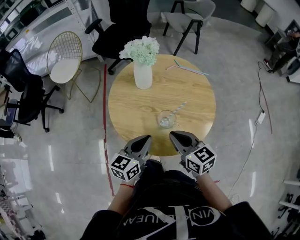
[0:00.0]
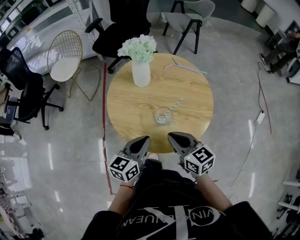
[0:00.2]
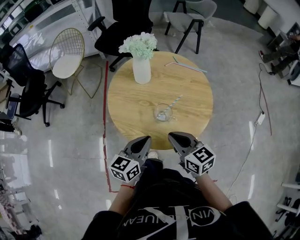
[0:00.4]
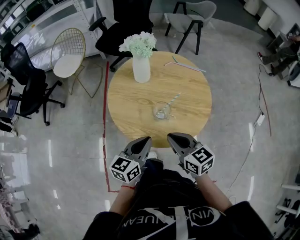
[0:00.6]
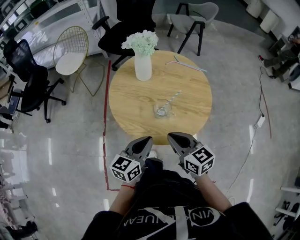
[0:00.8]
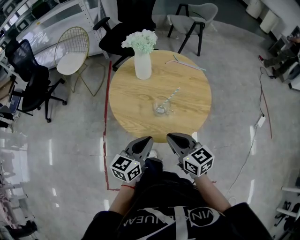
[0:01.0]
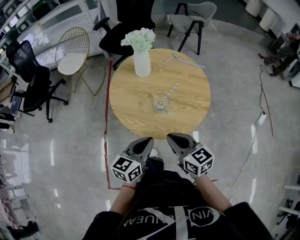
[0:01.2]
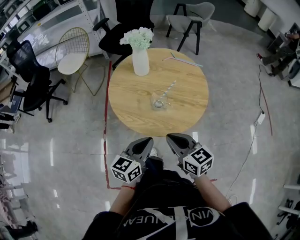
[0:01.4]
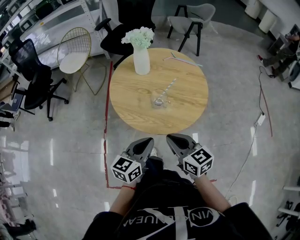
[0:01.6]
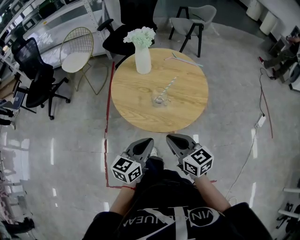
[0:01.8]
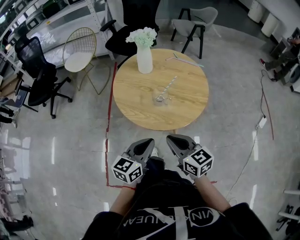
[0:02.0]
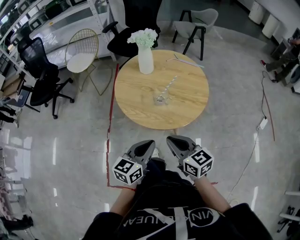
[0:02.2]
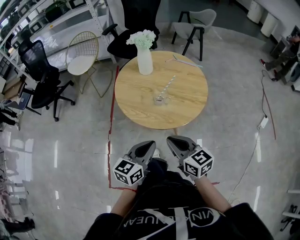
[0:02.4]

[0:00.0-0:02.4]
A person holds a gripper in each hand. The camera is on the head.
0:00.0 to 0:01.2: Both grippers travel together backward, some 10 cm.
0:01.2 to 0:02.4: The grippers both shift backward by about 10 cm.

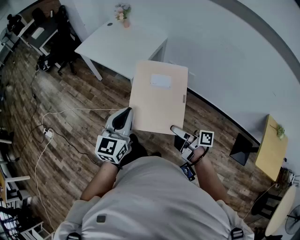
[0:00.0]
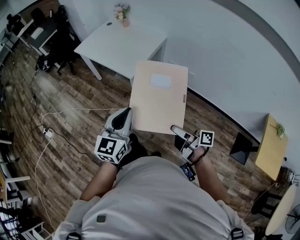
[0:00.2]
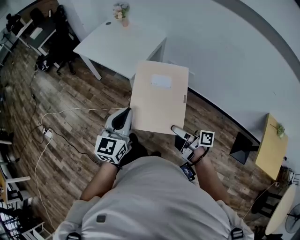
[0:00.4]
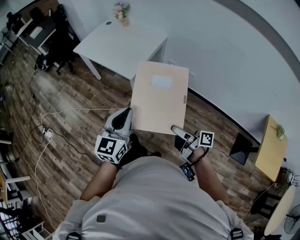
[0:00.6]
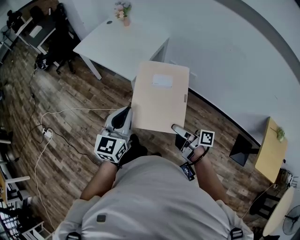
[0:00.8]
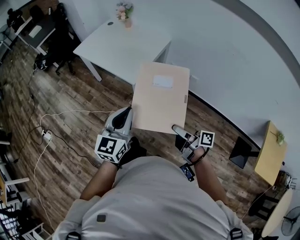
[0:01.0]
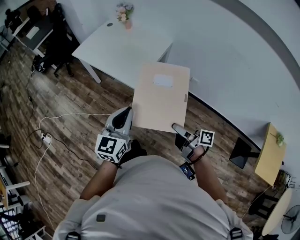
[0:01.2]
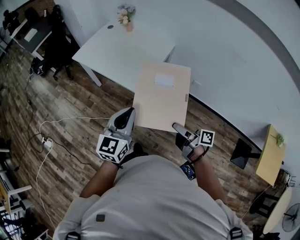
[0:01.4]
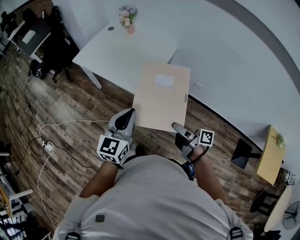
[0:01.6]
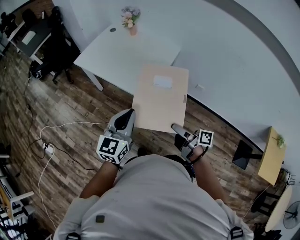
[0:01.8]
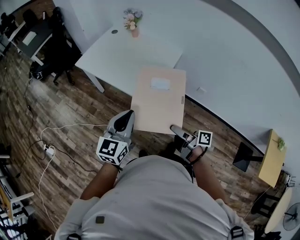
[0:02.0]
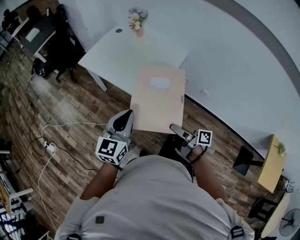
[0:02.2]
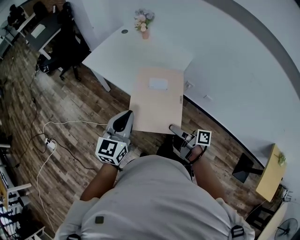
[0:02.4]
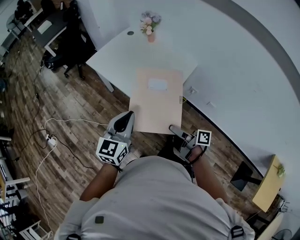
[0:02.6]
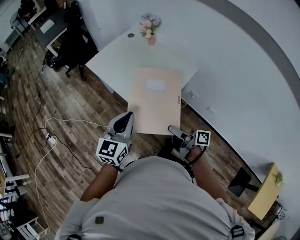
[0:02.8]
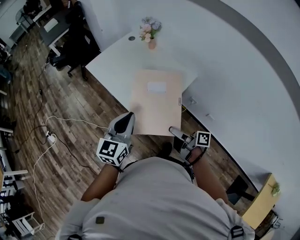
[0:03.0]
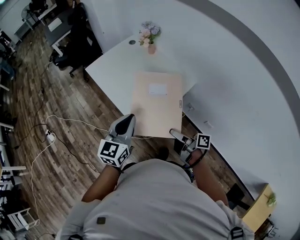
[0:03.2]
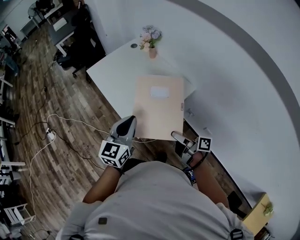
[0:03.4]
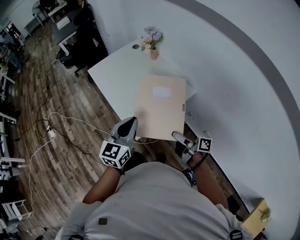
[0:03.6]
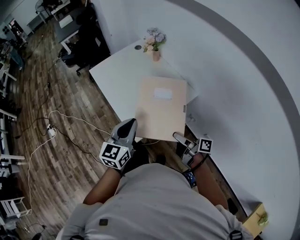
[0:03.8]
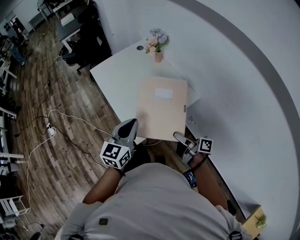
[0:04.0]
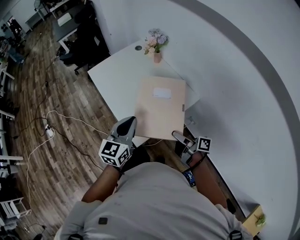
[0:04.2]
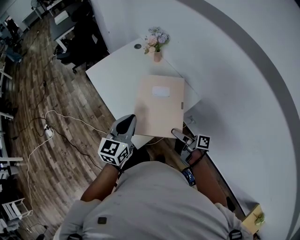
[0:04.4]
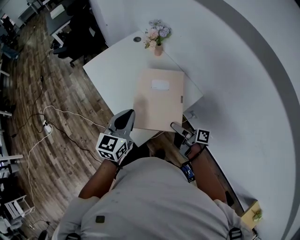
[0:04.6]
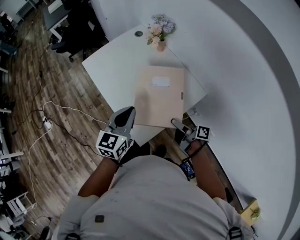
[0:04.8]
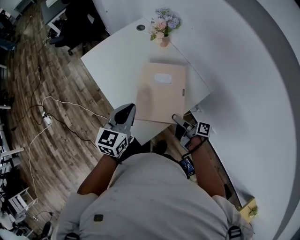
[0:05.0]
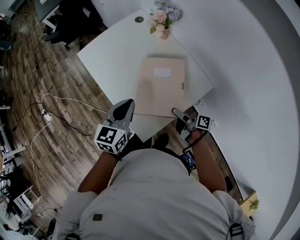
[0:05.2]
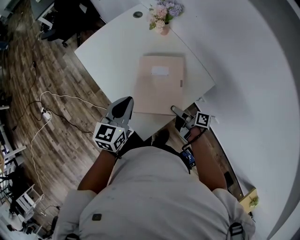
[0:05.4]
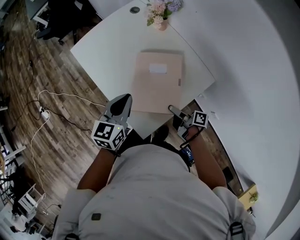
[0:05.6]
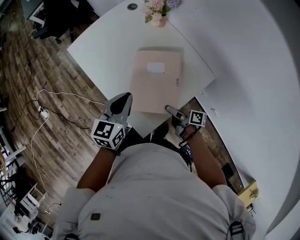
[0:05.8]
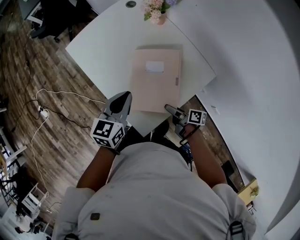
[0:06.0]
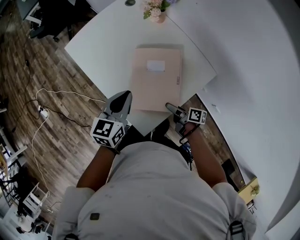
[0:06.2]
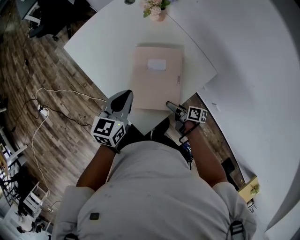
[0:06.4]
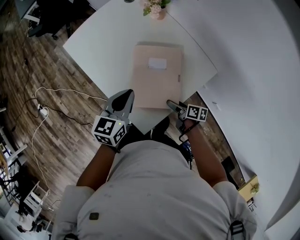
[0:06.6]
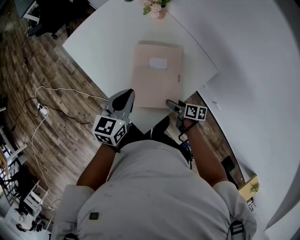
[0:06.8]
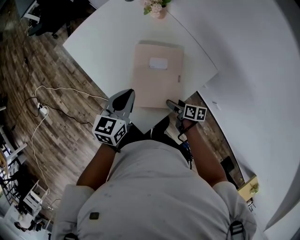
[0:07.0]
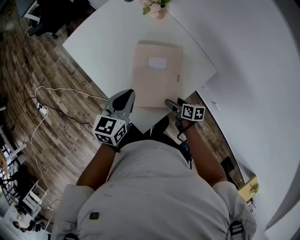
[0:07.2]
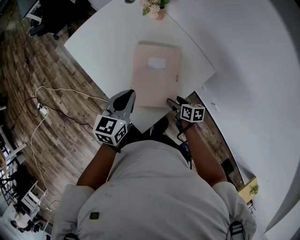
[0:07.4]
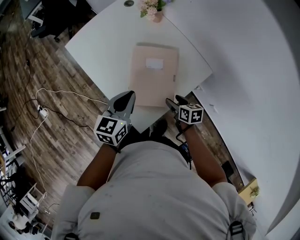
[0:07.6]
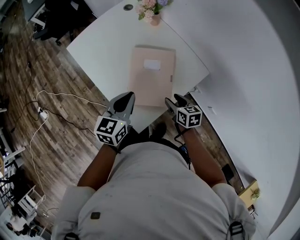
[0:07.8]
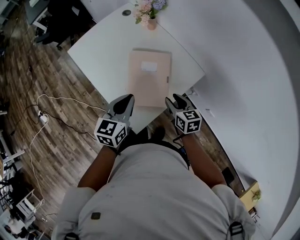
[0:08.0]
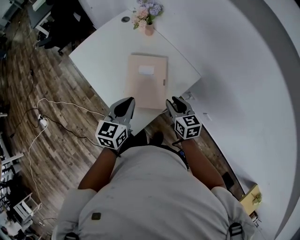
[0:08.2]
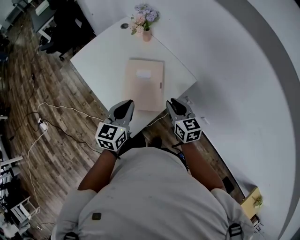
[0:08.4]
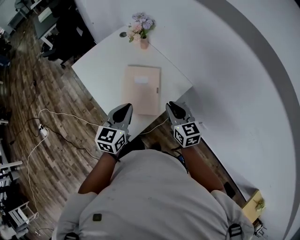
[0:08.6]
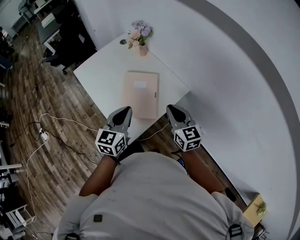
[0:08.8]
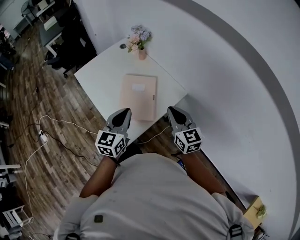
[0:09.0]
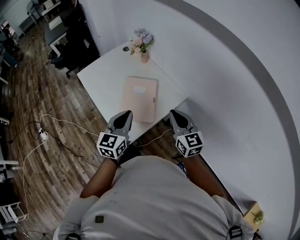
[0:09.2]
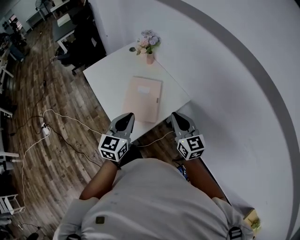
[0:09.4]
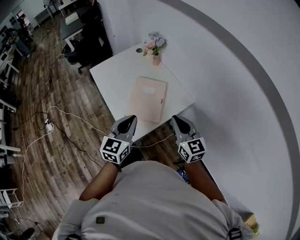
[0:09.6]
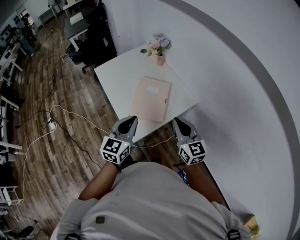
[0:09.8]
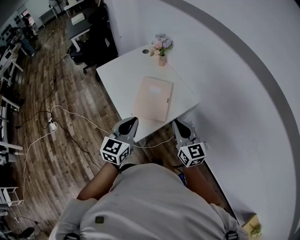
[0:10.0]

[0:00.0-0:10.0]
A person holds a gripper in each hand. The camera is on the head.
0:00.0 to 0:01.4: The grippers both shift forward by approximately 20 cm.
0:01.4 to 0:02.8: Both grippers travel together forward, approximately 20 cm.
0:02.8 to 0:04.2: Both grippers move to the right and forward, some 20 cm.
0:04.2 to 0:05.8: The right gripper moves downward and forward, approximately 25 cm; the left gripper goes roughly 20 cm forward and downward.
0:05.8 to 0:07.2: The right gripper shifts approximately 5 cm downward, and turns by about 40 degrees.
0:07.2 to 0:08.6: The right gripper goes approximately 25 cm upward, changes its angle by about 50 degrees, and closes, while the left gripper goes about 15 cm backward, upward and to the right.
0:08.6 to 0:10.0: Both grippers move backward and upward, roughly 15 cm.

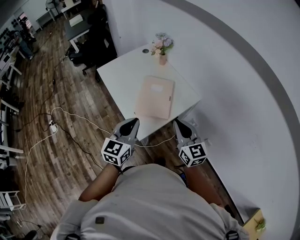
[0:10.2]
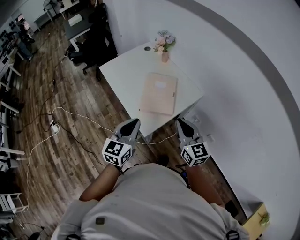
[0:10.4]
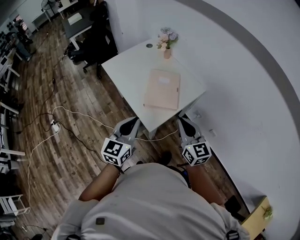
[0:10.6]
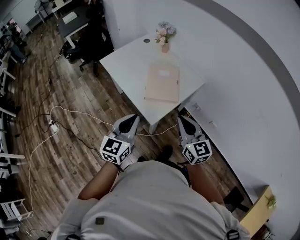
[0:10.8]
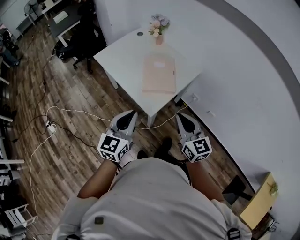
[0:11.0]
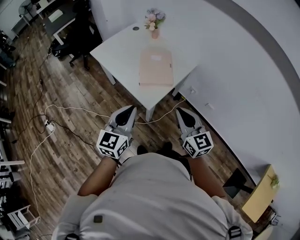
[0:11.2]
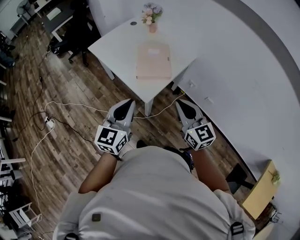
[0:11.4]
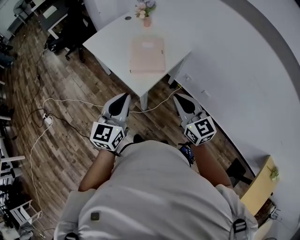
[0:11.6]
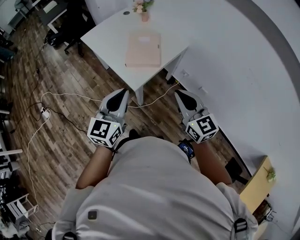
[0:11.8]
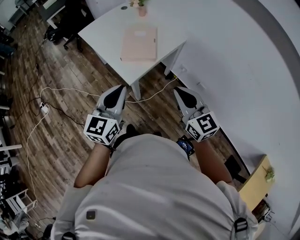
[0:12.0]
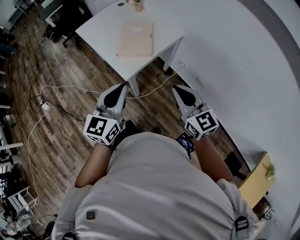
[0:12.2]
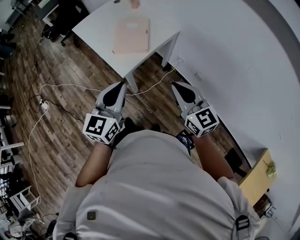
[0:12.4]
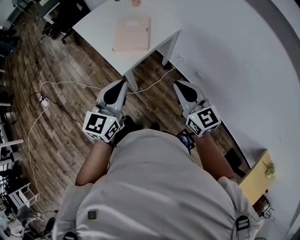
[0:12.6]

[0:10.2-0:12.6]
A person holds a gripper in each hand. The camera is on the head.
0:10.2 to 0:11.4: The left gripper is displaced backward and to the left by roughly 15 cm. The right gripper travels backward by about 15 cm.
0:11.4 to 0:12.6: The two grippers go roughly 15 cm to the right and backward.

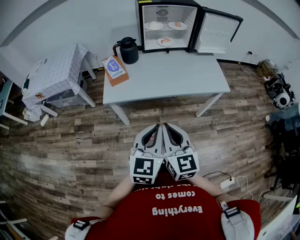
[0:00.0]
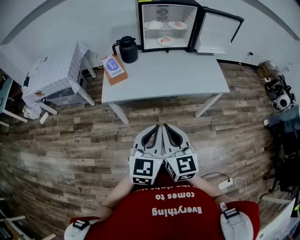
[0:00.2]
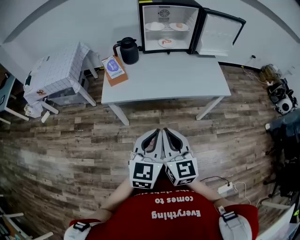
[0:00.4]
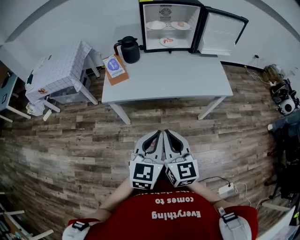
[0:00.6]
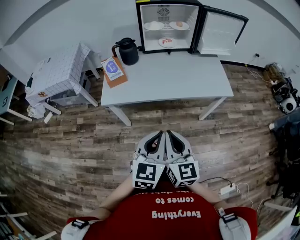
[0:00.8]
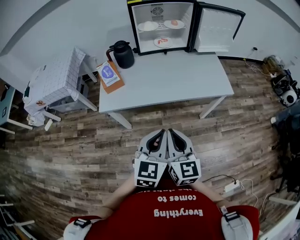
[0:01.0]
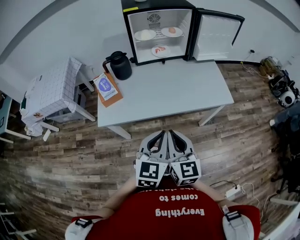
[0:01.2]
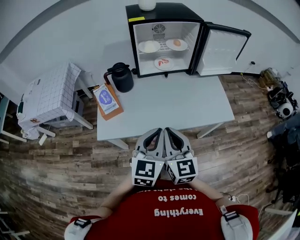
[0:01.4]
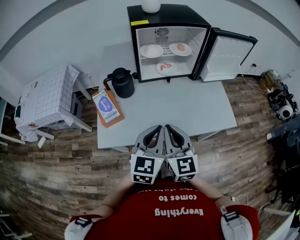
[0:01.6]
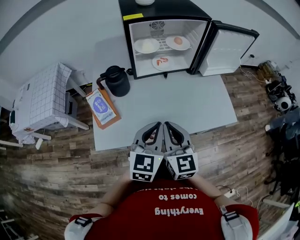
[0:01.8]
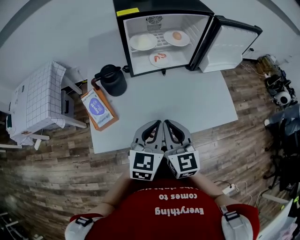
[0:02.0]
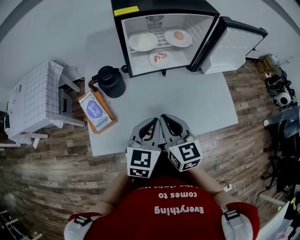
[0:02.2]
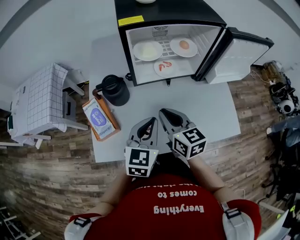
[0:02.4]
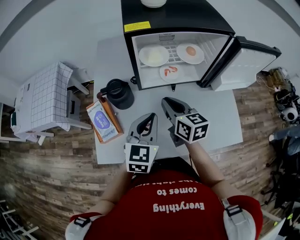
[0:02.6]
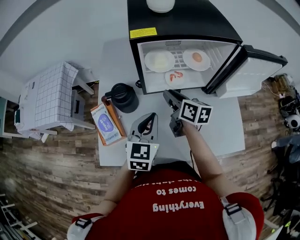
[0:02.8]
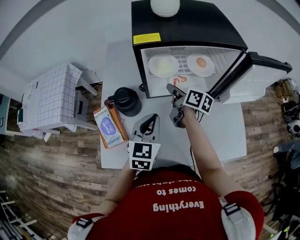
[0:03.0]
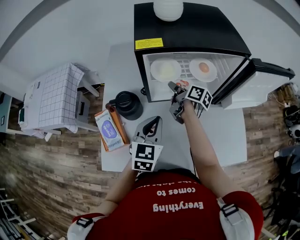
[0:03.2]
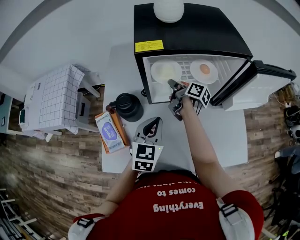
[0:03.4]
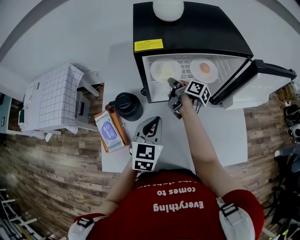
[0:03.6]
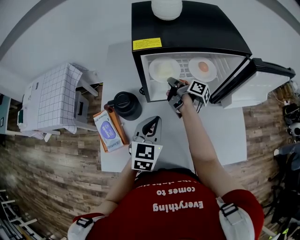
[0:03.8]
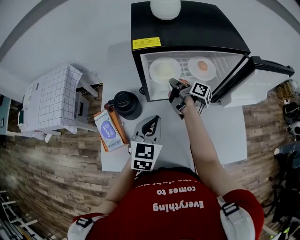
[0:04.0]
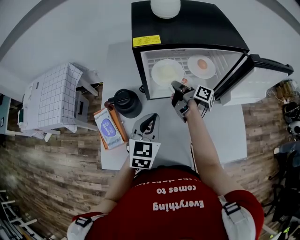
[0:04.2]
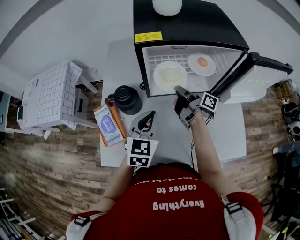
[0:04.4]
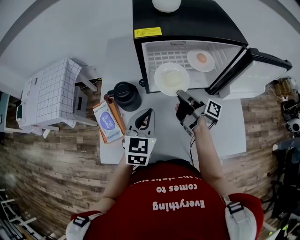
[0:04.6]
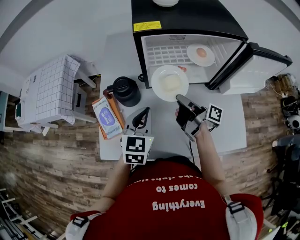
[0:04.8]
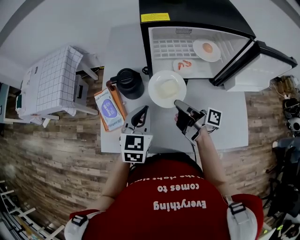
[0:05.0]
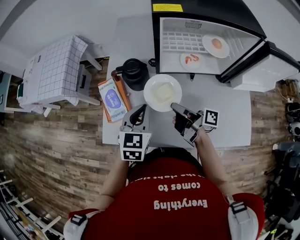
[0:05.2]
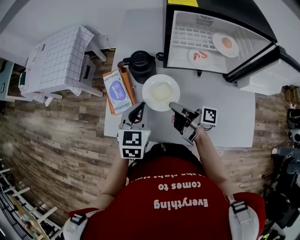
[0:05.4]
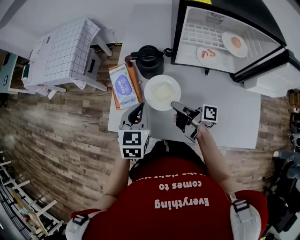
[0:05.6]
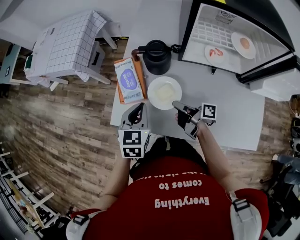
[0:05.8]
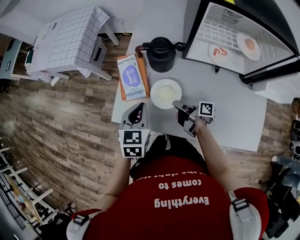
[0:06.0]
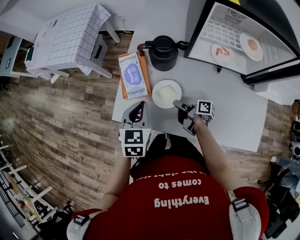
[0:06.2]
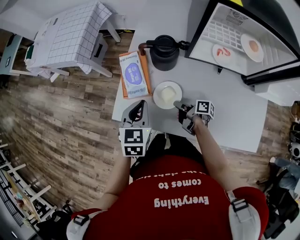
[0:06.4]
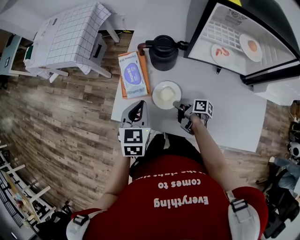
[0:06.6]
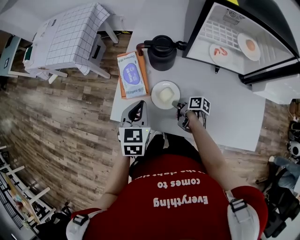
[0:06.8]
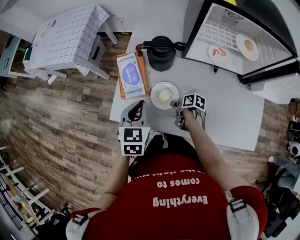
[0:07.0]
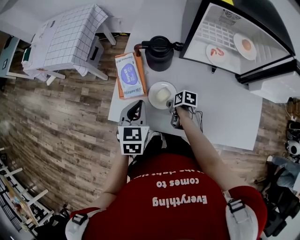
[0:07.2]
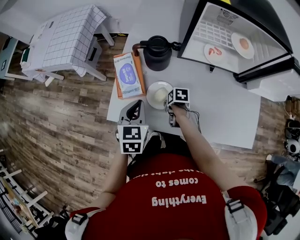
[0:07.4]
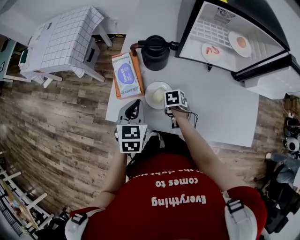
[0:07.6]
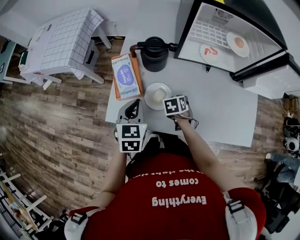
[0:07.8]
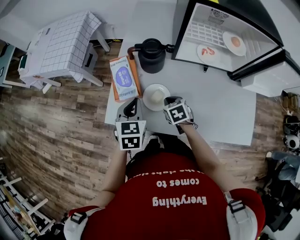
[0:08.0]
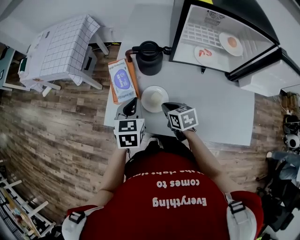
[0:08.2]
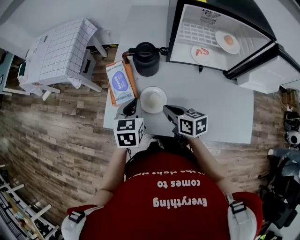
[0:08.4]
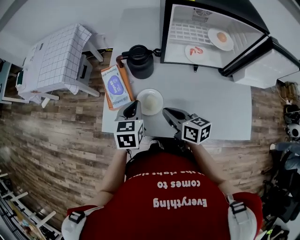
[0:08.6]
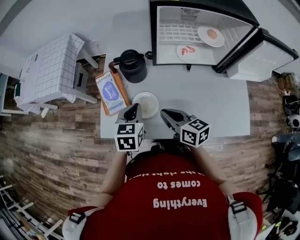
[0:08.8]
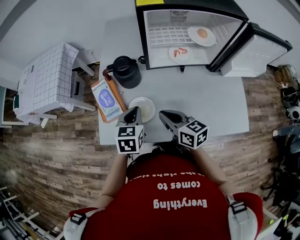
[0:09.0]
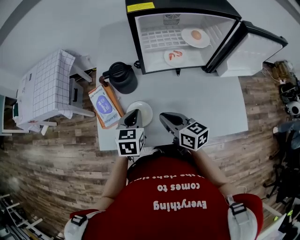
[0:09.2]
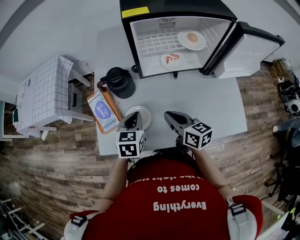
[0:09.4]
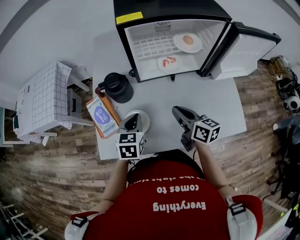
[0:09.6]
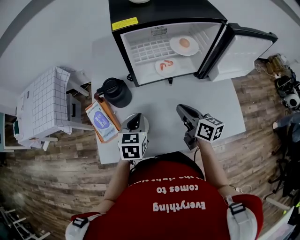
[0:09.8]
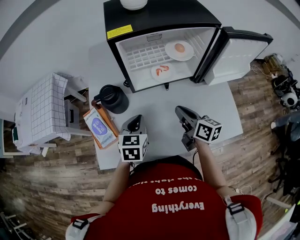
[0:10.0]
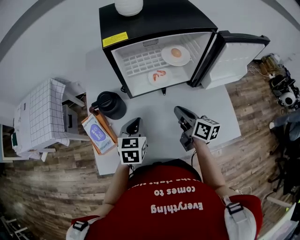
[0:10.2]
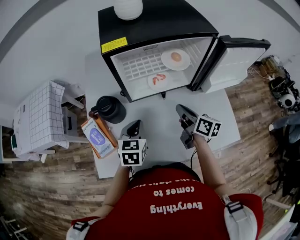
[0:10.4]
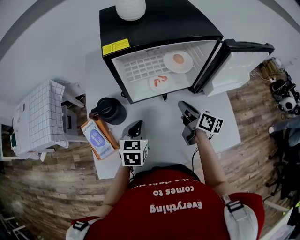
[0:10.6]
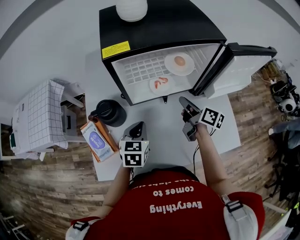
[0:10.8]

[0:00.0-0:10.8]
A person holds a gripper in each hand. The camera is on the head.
0:00.0 to 0:01.6: The left gripper moves approximately 30 cm.
0:01.6 to 0:03.0: The left gripper moves approximately 25 cm.
0:04.6 to 0:06.2: The left gripper moves roughly 20 cm, and changes its angle by some 30 degrees.
0:07.8 to 0:09.2: The left gripper ends up roughly 10 cm from where it was.
0:09.2 to 0:10.8: The left gripper ends up approximately 15 cm from where it was.
